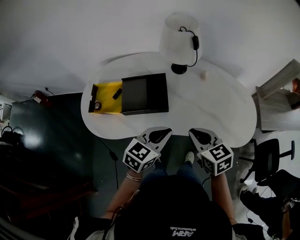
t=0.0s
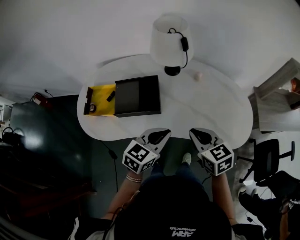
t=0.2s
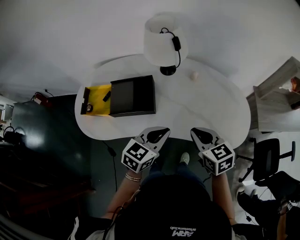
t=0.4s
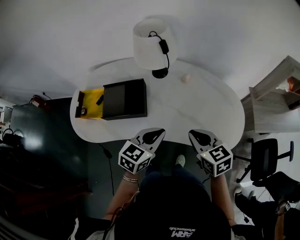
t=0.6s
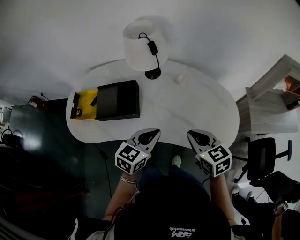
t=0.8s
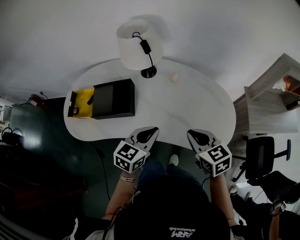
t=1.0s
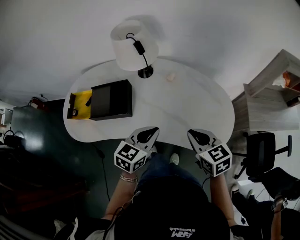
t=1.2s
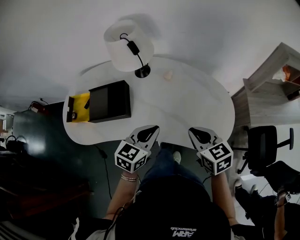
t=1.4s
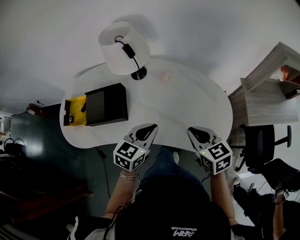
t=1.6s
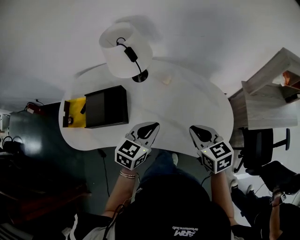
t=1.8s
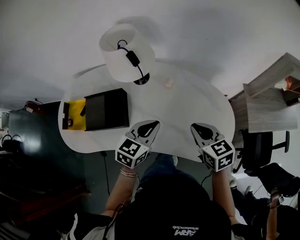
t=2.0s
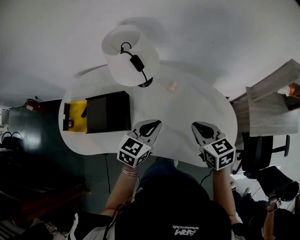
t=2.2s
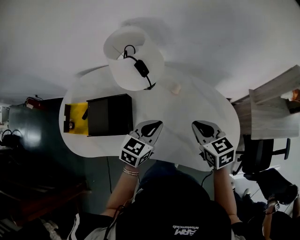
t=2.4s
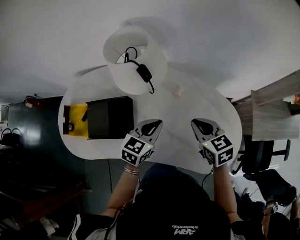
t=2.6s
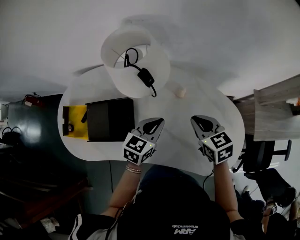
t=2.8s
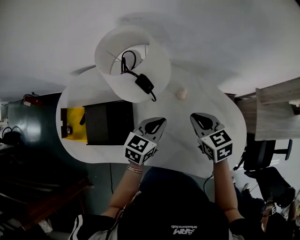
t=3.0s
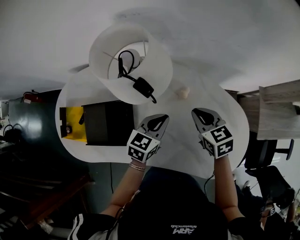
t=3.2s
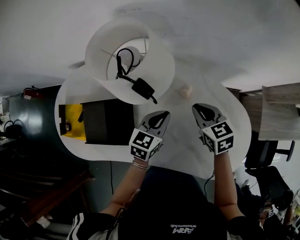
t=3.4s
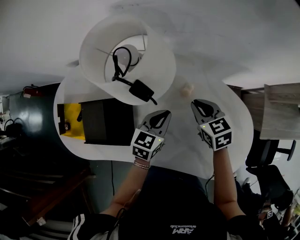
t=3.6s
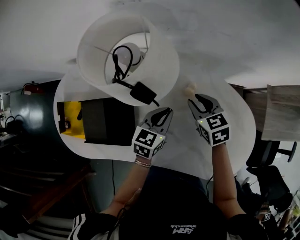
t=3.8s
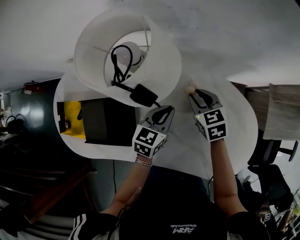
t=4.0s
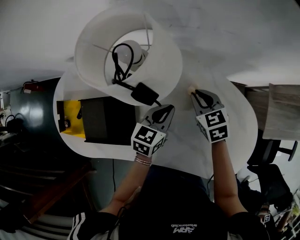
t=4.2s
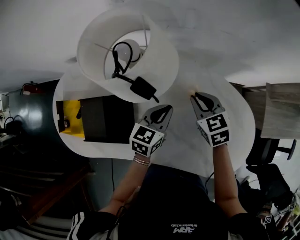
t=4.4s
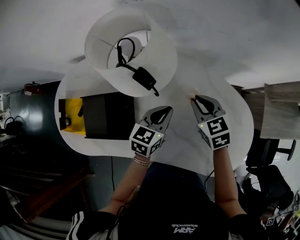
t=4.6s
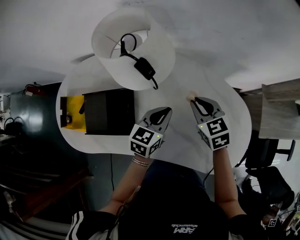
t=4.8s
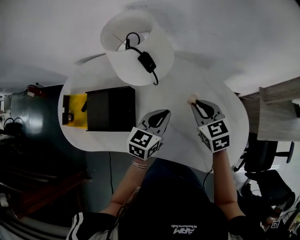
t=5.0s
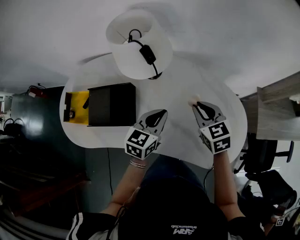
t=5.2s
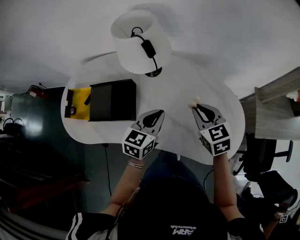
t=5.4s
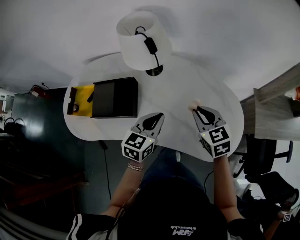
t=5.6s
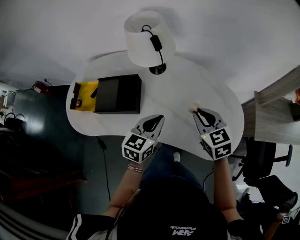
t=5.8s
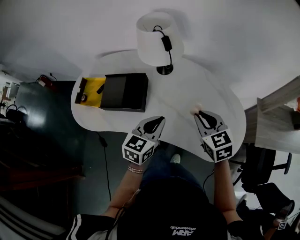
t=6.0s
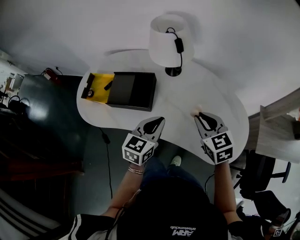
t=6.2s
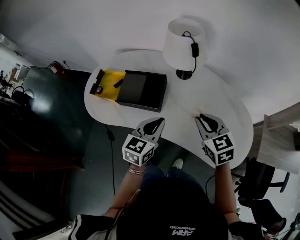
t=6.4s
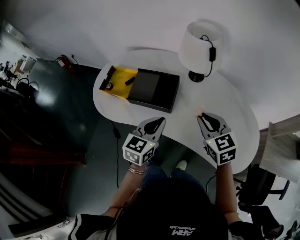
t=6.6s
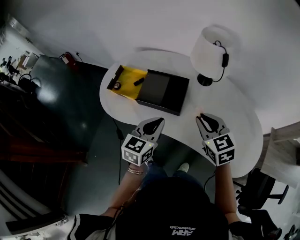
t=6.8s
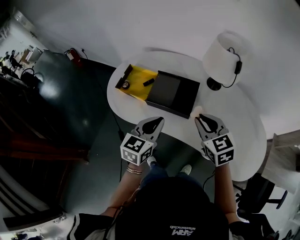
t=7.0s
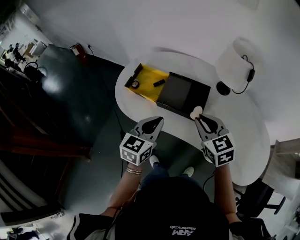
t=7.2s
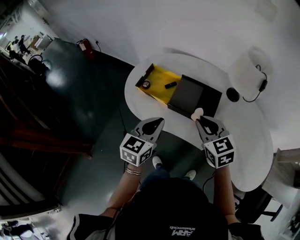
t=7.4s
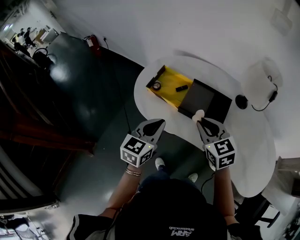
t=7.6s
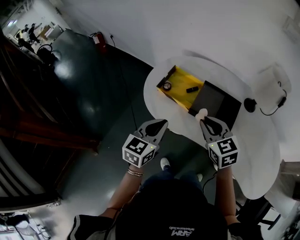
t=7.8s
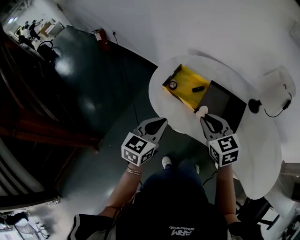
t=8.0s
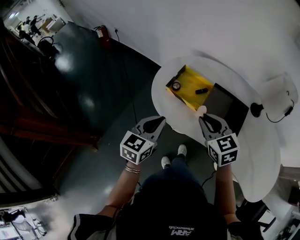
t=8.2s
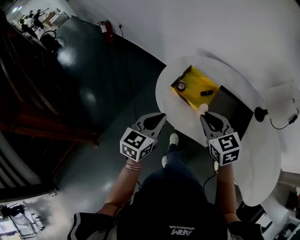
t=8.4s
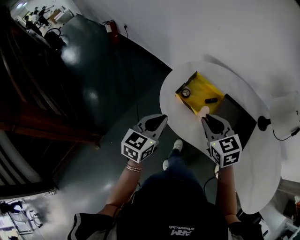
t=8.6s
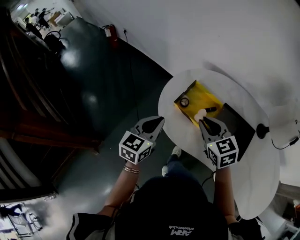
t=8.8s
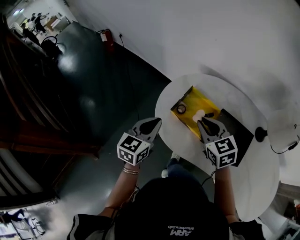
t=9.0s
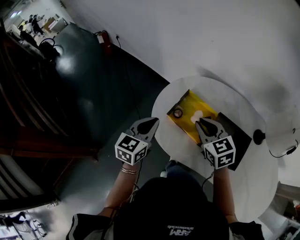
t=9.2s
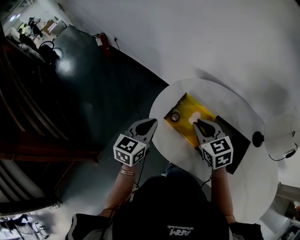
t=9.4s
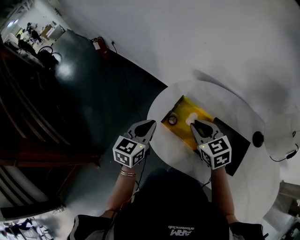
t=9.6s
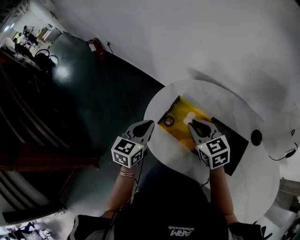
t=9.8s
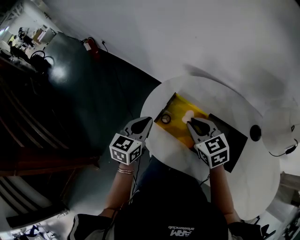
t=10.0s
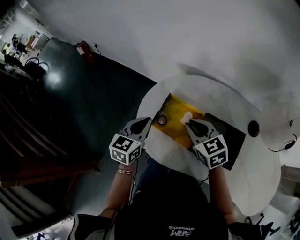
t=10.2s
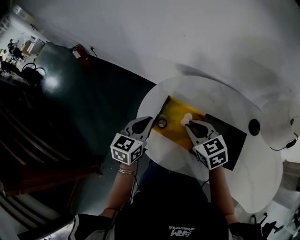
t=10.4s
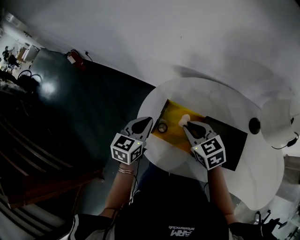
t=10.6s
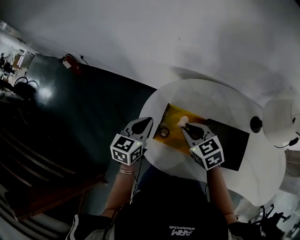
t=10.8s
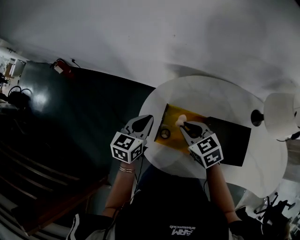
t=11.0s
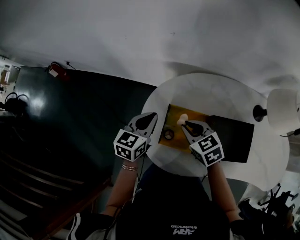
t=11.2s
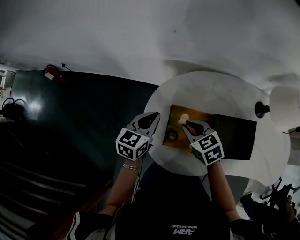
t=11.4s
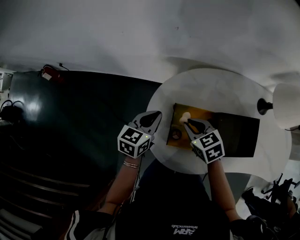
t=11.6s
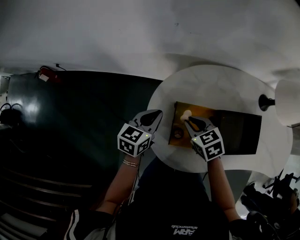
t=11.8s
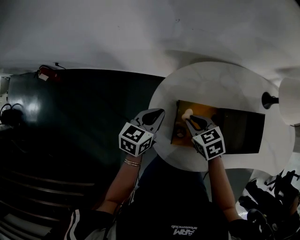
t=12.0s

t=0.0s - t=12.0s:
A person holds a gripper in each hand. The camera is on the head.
t=0.0s - t=1.6s: The left gripper heads to the right and forward, covering about 20 cm, while the right gripper travels to the right by approximately 20 cm.
t=1.6s - t=3.0s: The right gripper shifts approximately 20 cm forward, while the left gripper is displaced forward and downward by some 20 cm.
t=3.0s - t=4.4s: The right gripper moves forward and downward, roughly 10 cm, while the left gripper ends up approximately 5 cm from where it was.
t=4.4s - t=6.0s: Both grippers move backward and upward, approximately 25 cm.
t=6.0s - t=7.6s: Both grippers move to the left, roughly 40 cm. The left gripper turns by some 20 degrees. The right gripper rotates approximately 20 degrees.
t=7.6s - t=9.0s: Both grippers move forward and to the left, some 20 cm.
t=9.0s - t=10.4s: The left gripper goes about 15 cm forward and to the right. Meanwhile the right gripper moves forward, about 5 cm.
t=10.4s - t=12.0s: The left gripper shifts approximately 15 cm forward and downward, and turns by some 30 degrees. The right gripper is displaced downward, to the left and forward by roughly 15 cm, and swivels some 30 degrees.

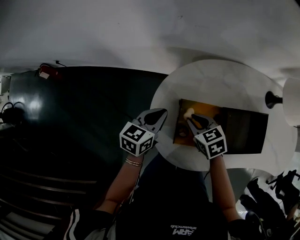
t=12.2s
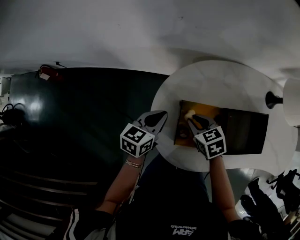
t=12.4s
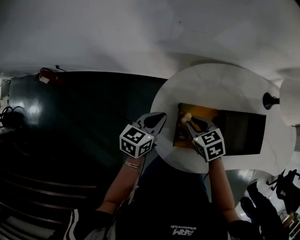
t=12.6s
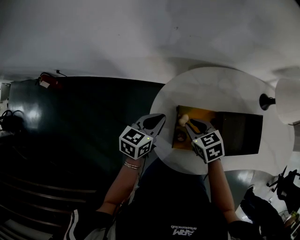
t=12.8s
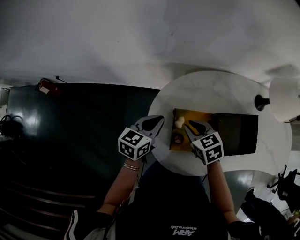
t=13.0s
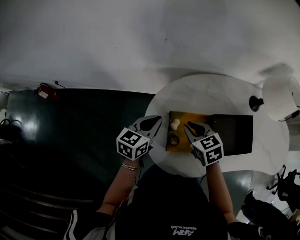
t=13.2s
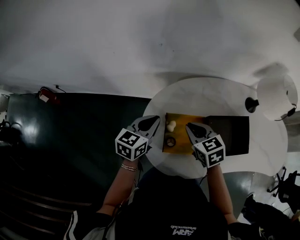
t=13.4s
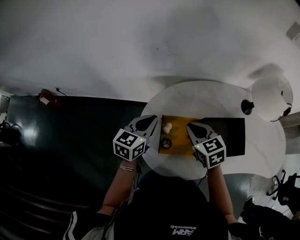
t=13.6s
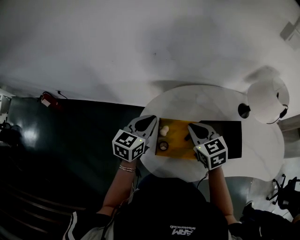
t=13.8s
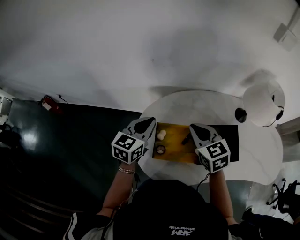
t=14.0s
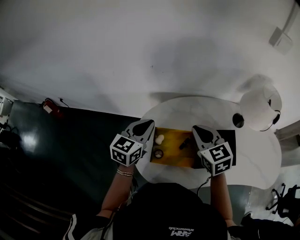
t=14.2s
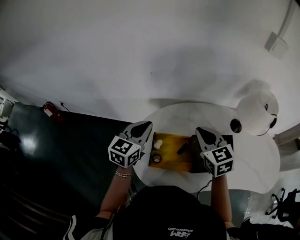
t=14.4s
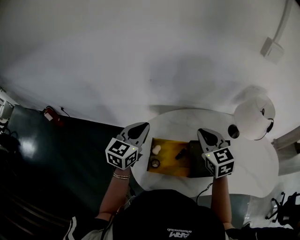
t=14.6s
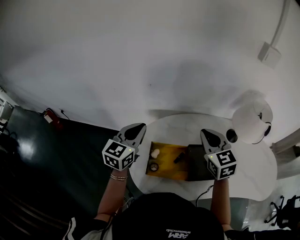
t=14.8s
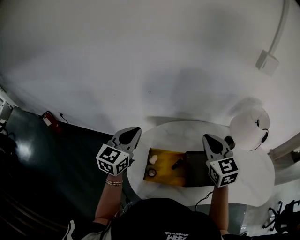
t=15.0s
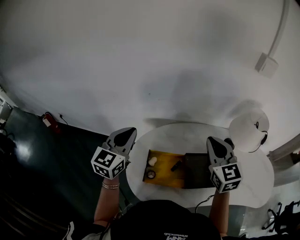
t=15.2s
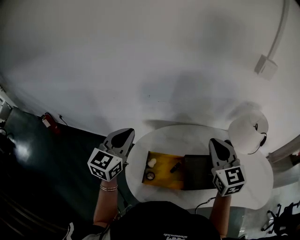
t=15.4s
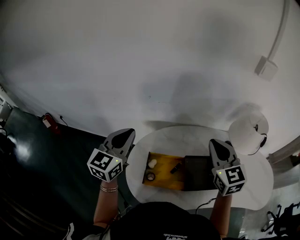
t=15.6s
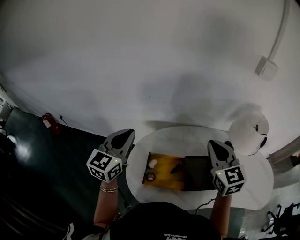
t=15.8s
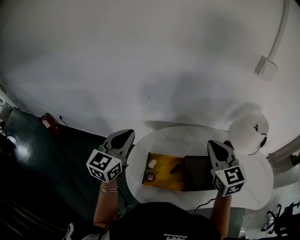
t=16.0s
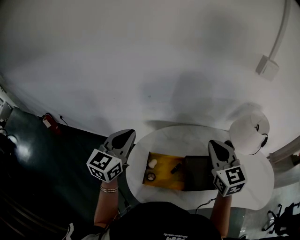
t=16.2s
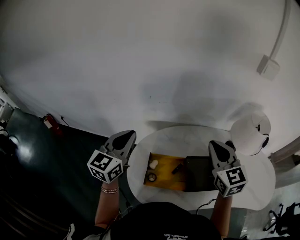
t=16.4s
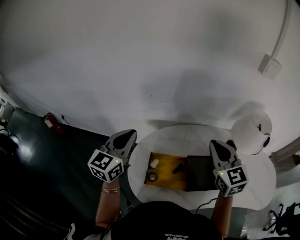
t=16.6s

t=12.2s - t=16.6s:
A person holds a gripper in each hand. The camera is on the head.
t=12.2s - t=13.6s: The right gripper goes about 15 cm upward and to the right. Meanwhile the left gripper goes some 10 cm upward.
t=13.6s - t=15.2s: The right gripper heads upward and to the right, covering some 25 cm, and turns by approximately 30 degrees. The left gripper shifts approximately 15 cm upward, and rotates some 30 degrees.
t=15.2s - t=16.6s: The grippers make only small movements.

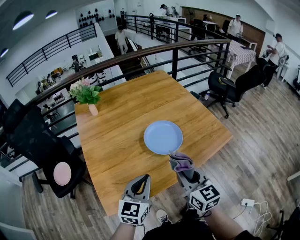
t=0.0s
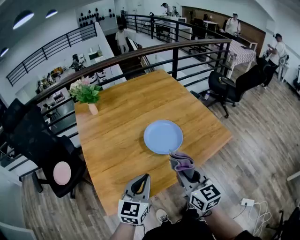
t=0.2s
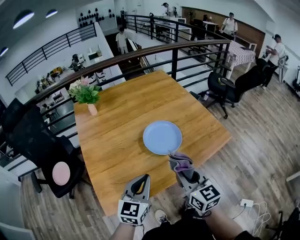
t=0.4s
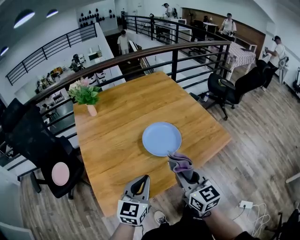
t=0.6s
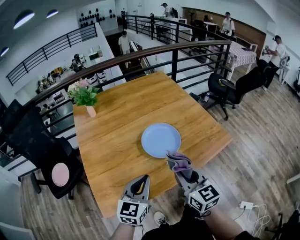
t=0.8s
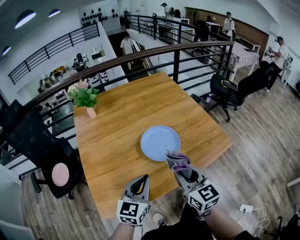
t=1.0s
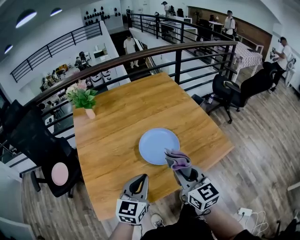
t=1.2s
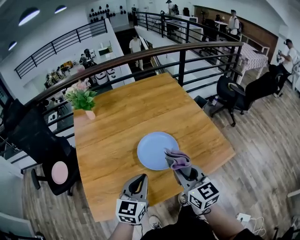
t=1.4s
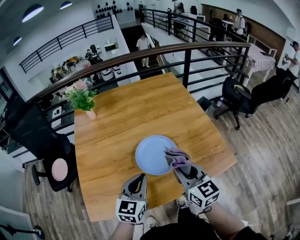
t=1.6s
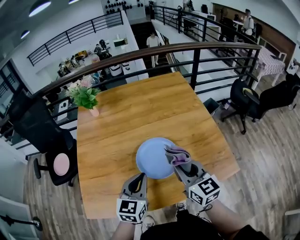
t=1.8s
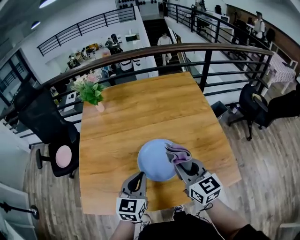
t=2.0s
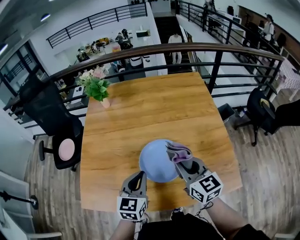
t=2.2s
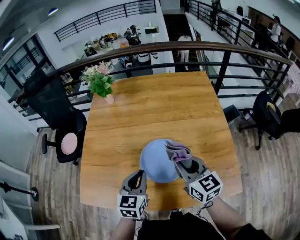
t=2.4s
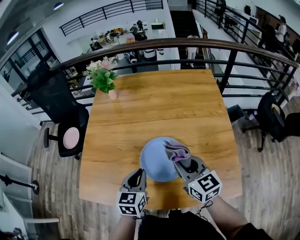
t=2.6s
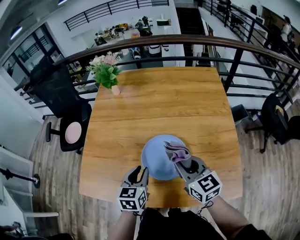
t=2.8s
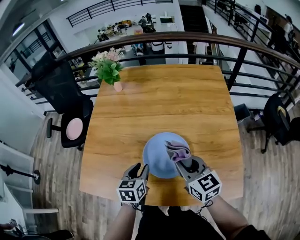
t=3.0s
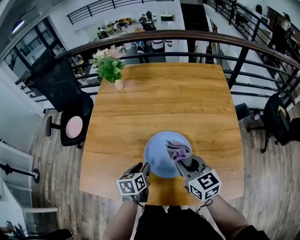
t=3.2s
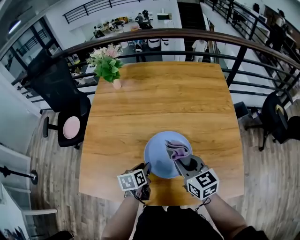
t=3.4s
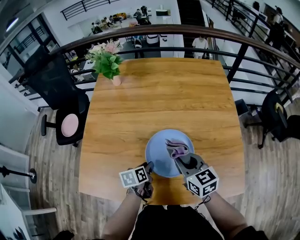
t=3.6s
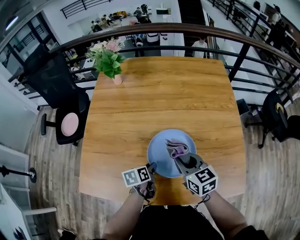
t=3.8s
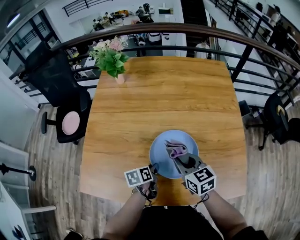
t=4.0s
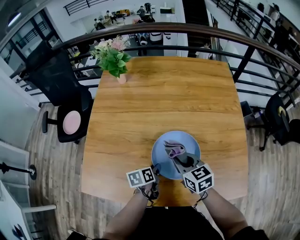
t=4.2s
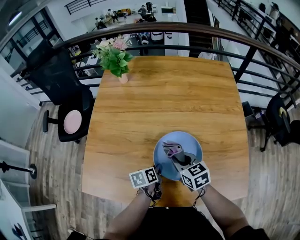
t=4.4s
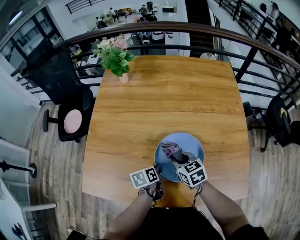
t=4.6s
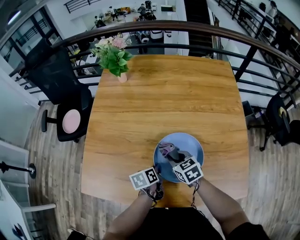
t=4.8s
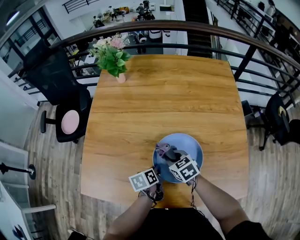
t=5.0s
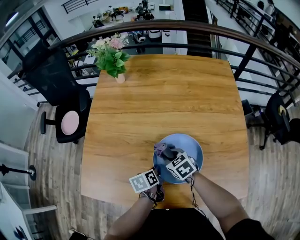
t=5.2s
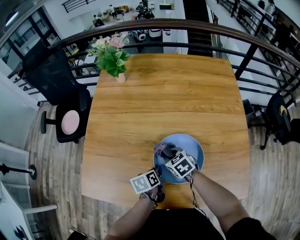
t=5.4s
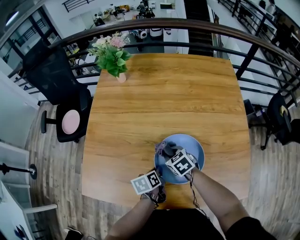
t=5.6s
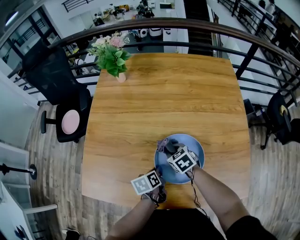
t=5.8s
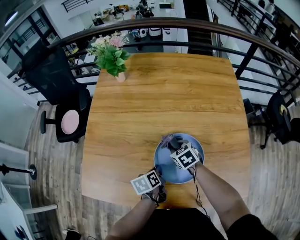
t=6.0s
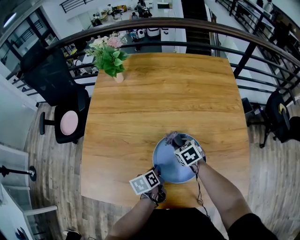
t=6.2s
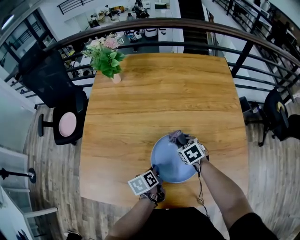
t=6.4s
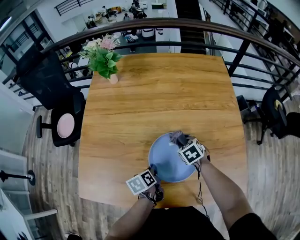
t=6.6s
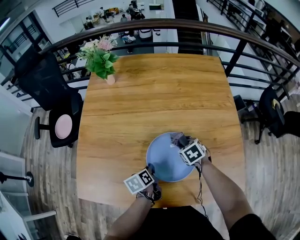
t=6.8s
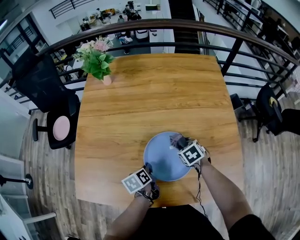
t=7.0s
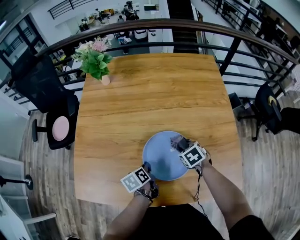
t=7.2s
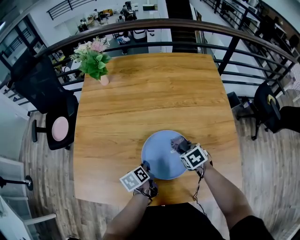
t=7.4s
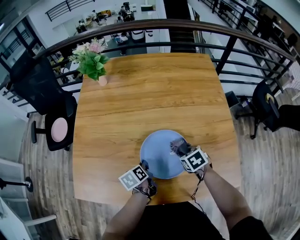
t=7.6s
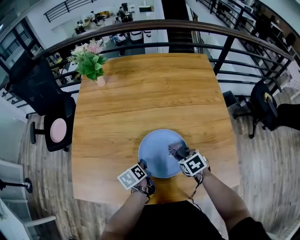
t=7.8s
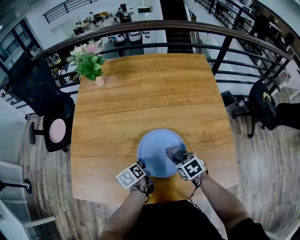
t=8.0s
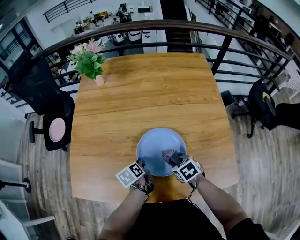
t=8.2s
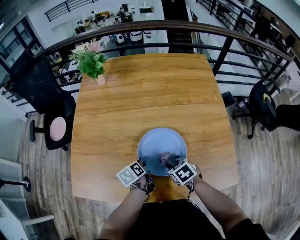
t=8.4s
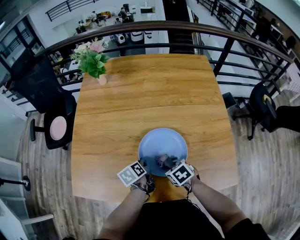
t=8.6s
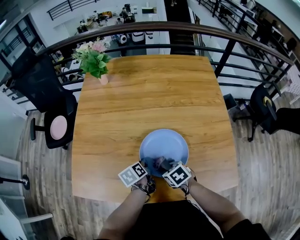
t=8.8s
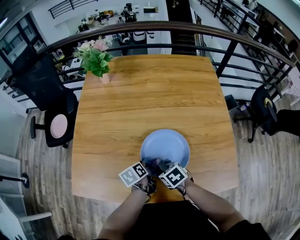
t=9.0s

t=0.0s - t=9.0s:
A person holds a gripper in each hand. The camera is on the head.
t=0.0s - t=1.6s: The grippers both shift forward and to the right by approximately 20 cm.
t=1.6s - t=3.0s: The right gripper moves roughly 15 cm, and rotates some 30 degrees. Meanwhile the left gripper is displaced downward by roughly 15 cm, rotates approximately 40 degrees, and opens up.
t=3.0s - t=4.4s: The right gripper goes approximately 15 cm downward, to the left and forward. Meanwhile the left gripper heads downward, covering roughly 15 cm, and changes its angle by roughly 40 degrees.
t=4.4s - t=6.0s: The right gripper moves downward and forward, approximately 10 cm, and rotates some 20 degrees.
t=6.0s - t=7.6s: The right gripper travels to the right and backward by approximately 15 cm.
t=7.6s - t=9.0s: The right gripper goes about 15 cm to the left.
